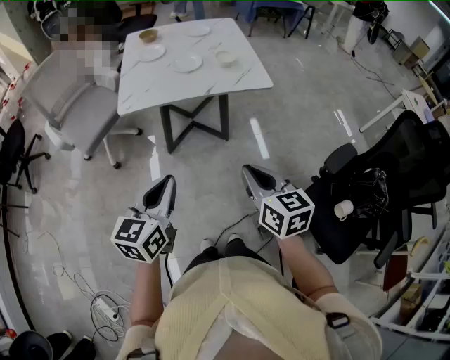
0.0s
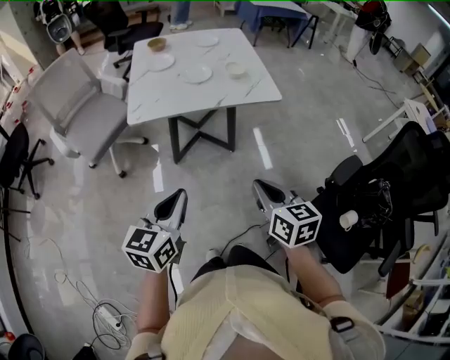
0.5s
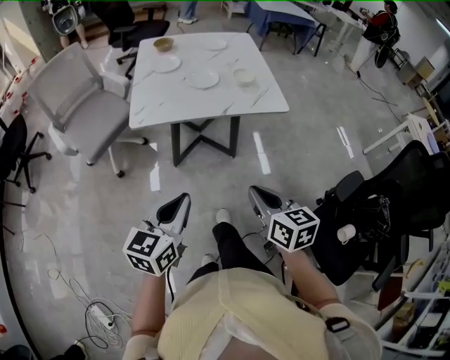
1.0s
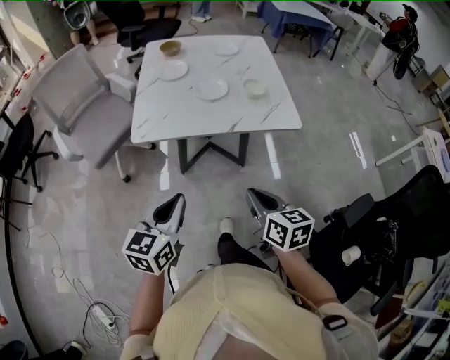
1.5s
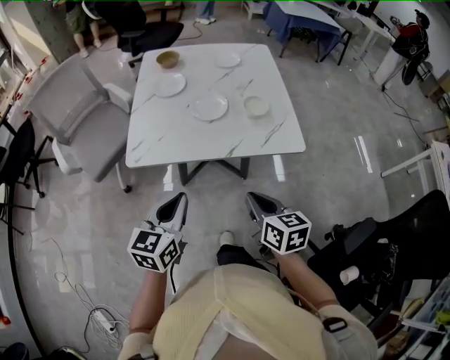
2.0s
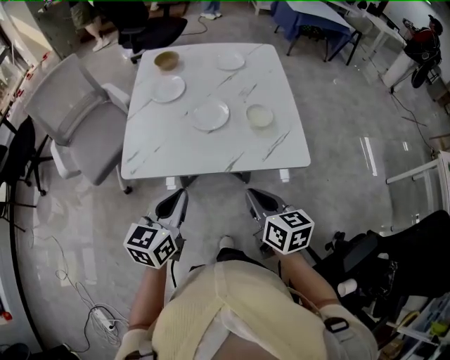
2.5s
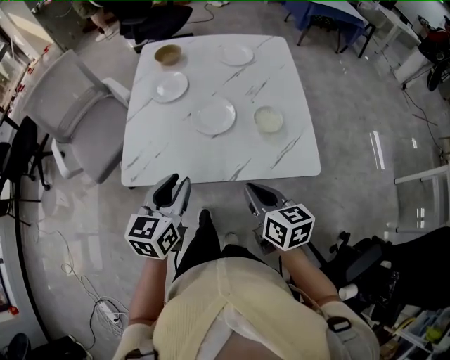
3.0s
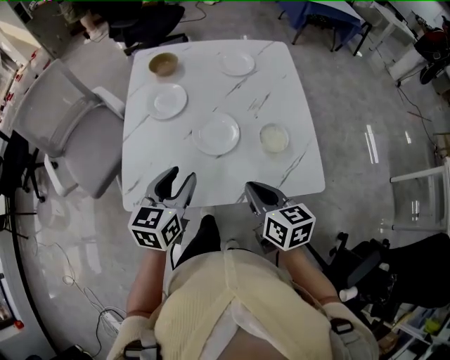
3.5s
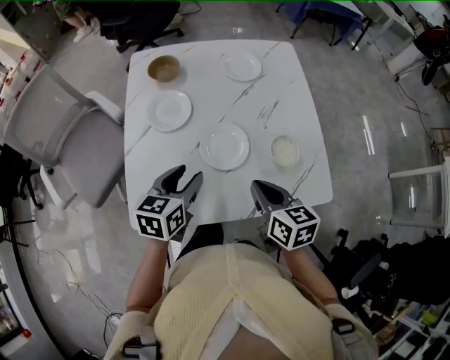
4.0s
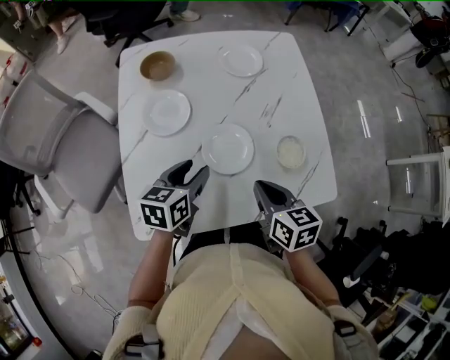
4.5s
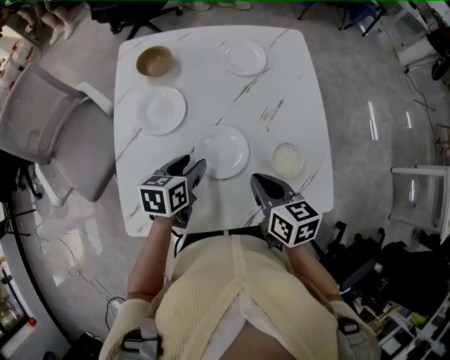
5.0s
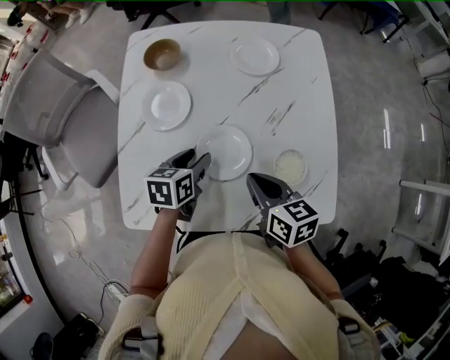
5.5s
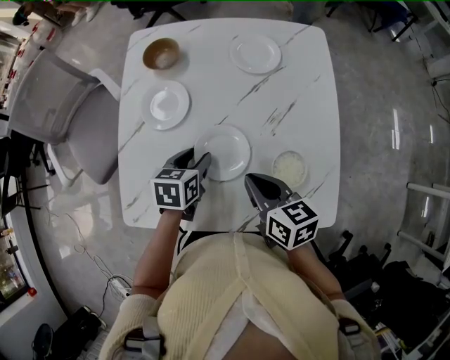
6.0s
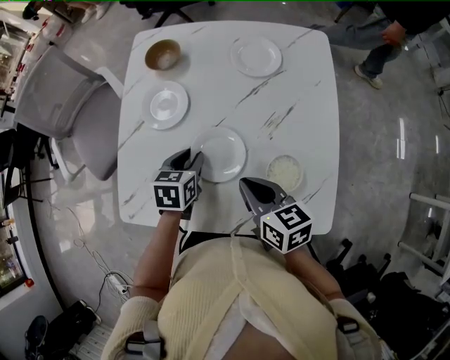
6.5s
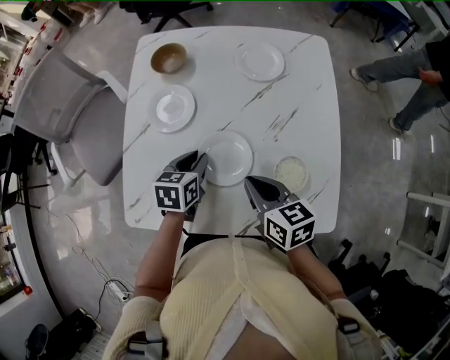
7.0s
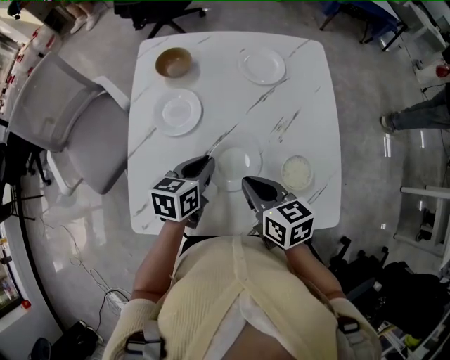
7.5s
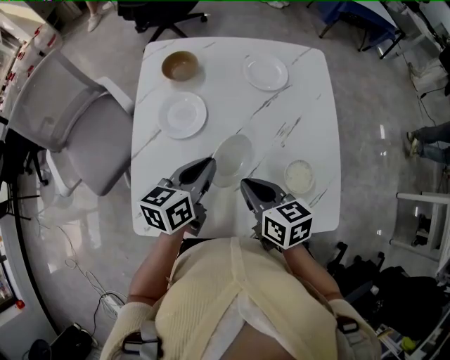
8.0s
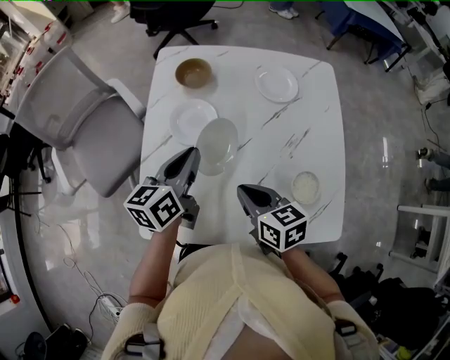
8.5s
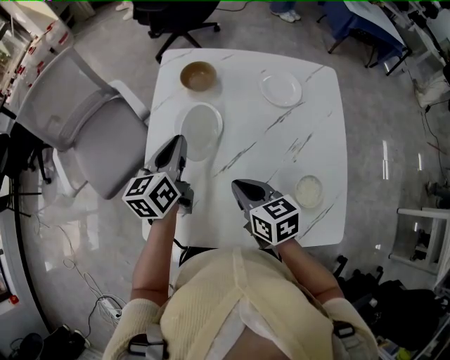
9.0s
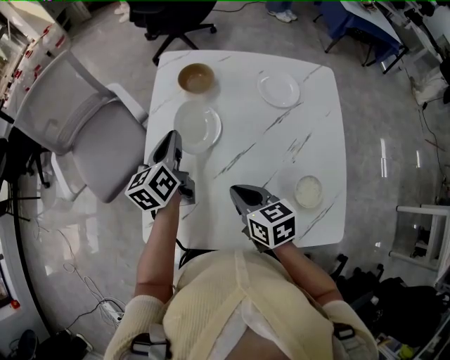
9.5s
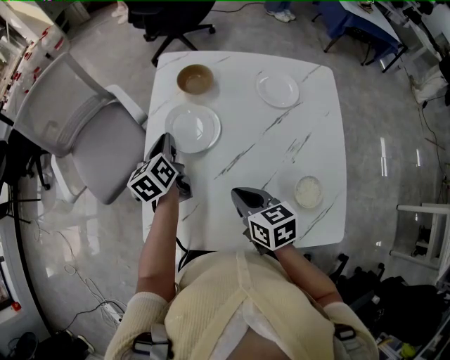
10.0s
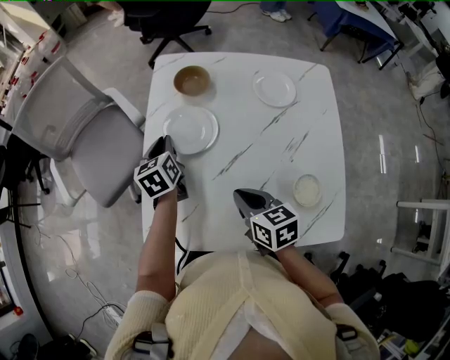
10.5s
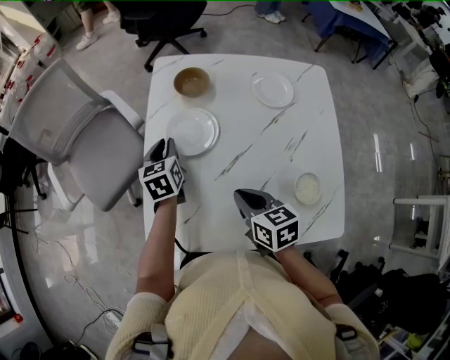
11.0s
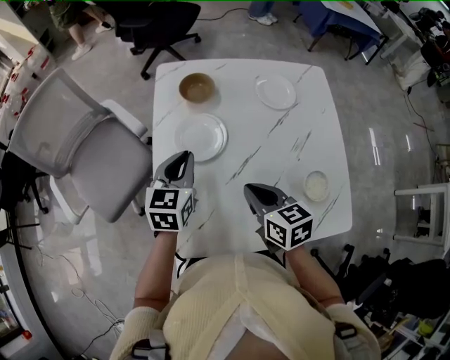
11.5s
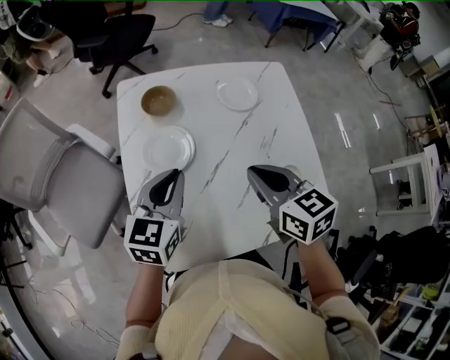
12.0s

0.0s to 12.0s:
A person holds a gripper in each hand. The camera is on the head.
0.0s to 2.0s: Both grippers move forward, some 25 cm.
2.0s to 4.0s: Both grippers travel together forward, roughly 30 cm. The left gripper opens.
4.0s to 6.0s: The right gripper is displaced forward by roughly 5 cm; the left gripper heads downward and forward, covering roughly 10 cm, and swivels roughly 20 degrees.
6.0s to 8.0s: The left gripper heads upward, covering roughly 10 cm, rotates roughly 30 degrees, and closes up. Meanwhile the right gripper shifts approximately 5 cm to the left.
8.0s to 10.0s: The left gripper heads forward and to the left, covering roughly 20 cm, and rotates roughly 40 degrees. Meanwhile the right gripper shifts about 5 cm to the left.
10.0s to 12.0s: The left gripper moves approximately 15 cm, and turns by roughly 50 degrees. Meanwhile the right gripper goes about 15 cm upward, and changes its angle by about 20 degrees.

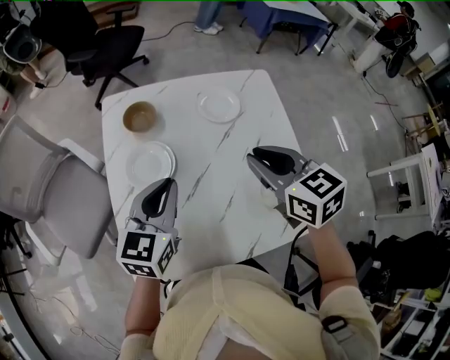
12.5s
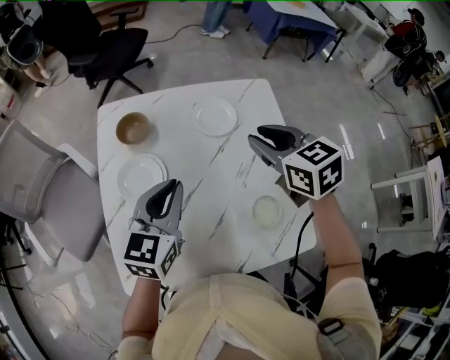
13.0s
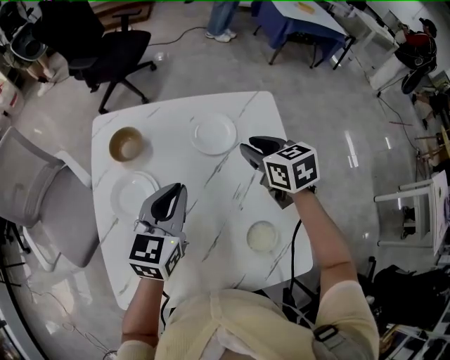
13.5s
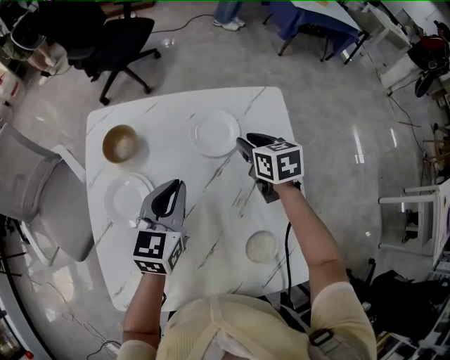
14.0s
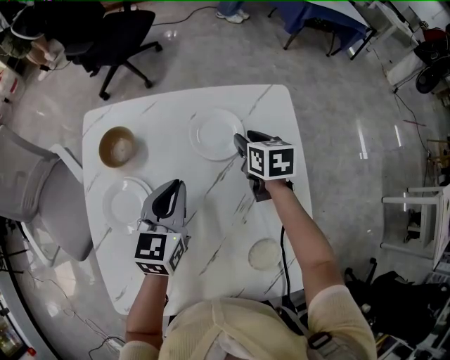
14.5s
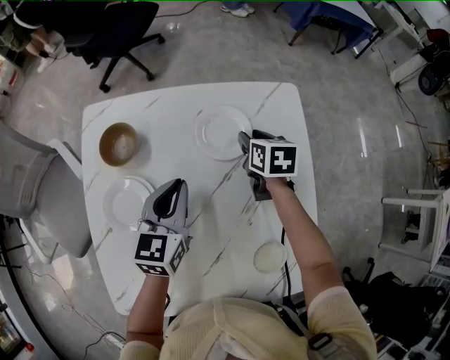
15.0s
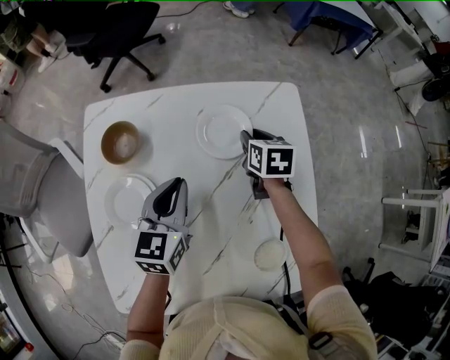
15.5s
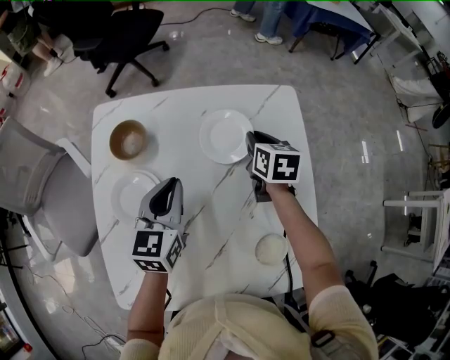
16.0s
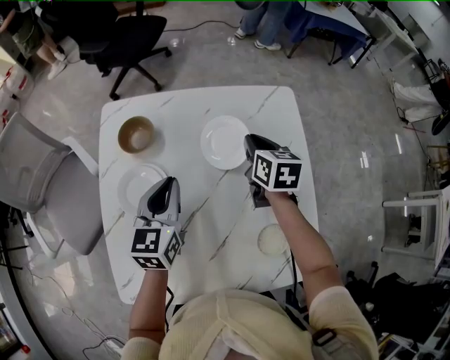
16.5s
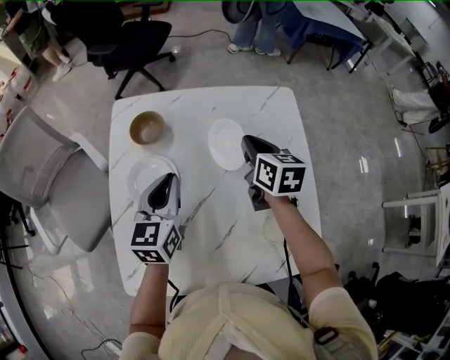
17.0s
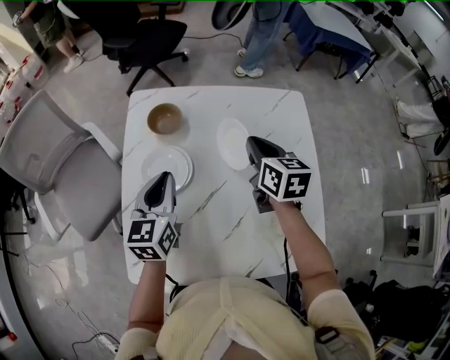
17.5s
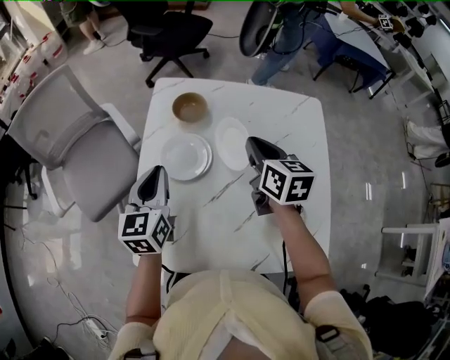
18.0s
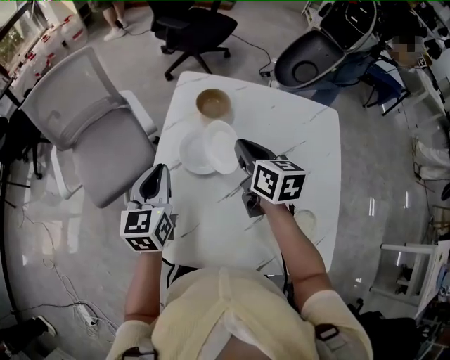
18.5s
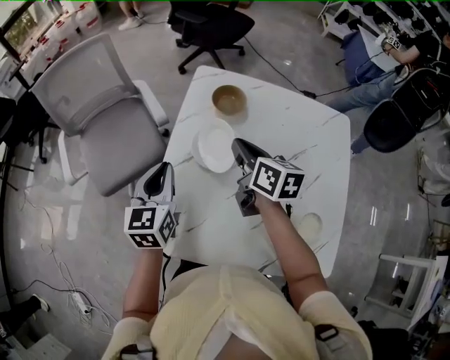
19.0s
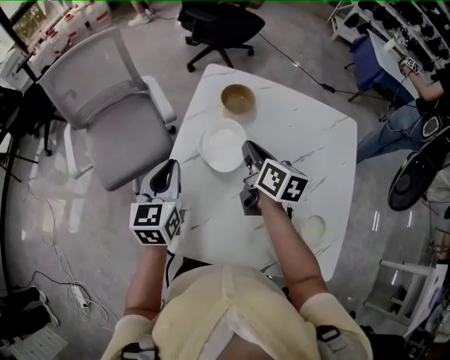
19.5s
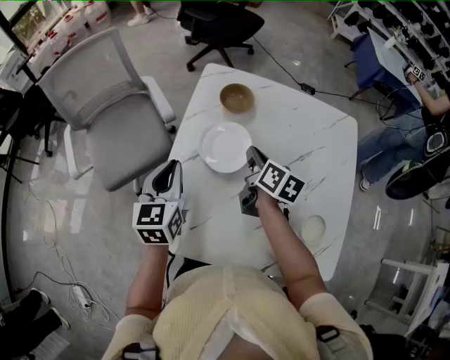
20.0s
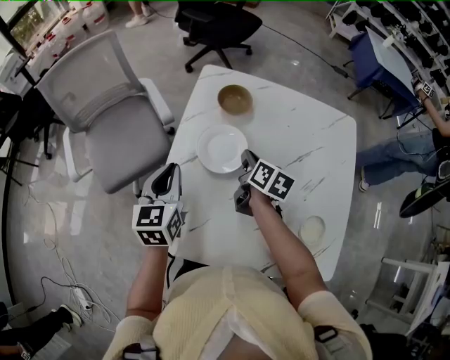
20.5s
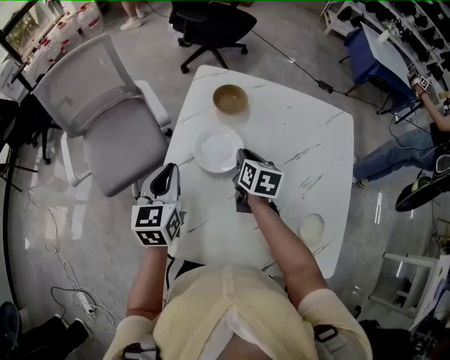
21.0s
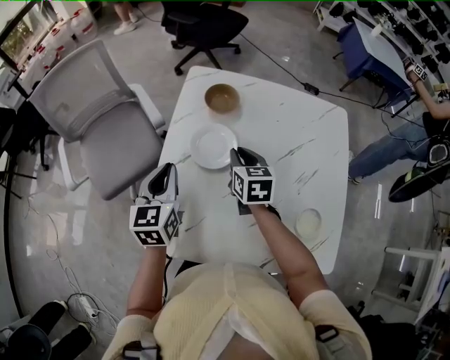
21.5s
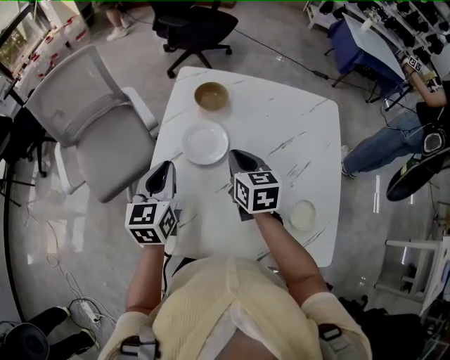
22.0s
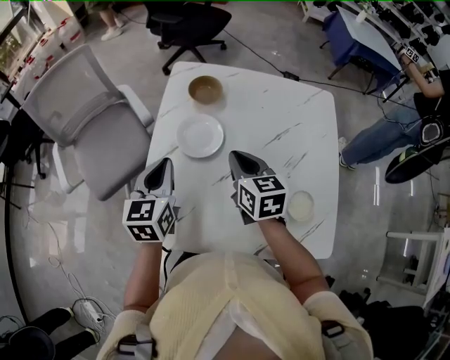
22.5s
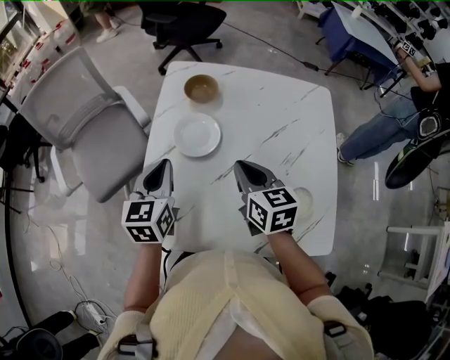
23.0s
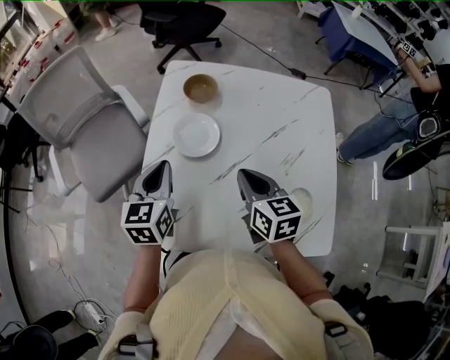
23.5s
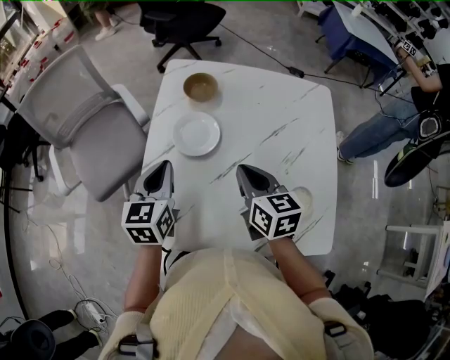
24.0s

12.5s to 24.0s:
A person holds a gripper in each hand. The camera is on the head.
12.5s to 14.5s: The right gripper goes approximately 35 cm forward and downward, and turns by roughly 20 degrees. Meanwhile the left gripper goes approximately 20 cm forward, to the right and downward.
14.5s to 16.5s: The left gripper travels to the left by some 5 cm, while the right gripper moves upward, roughly 5 cm, and closes up.
16.5s to 18.5s: The right gripper is displaced to the left by some 25 cm, and turns by roughly 20 degrees. The left gripper moves to the left and backward, approximately 25 cm, and swivels about 20 degrees.
18.5s to 20.0s: The right gripper is displaced downward by roughly 10 cm, and rotates approximately 20 degrees.
20.0s to 22.0s: The right gripper moves roughly 5 cm, and changes its angle by some 30 degrees.
22.0s to 24.0s: The right gripper is displaced backward by about 10 cm.

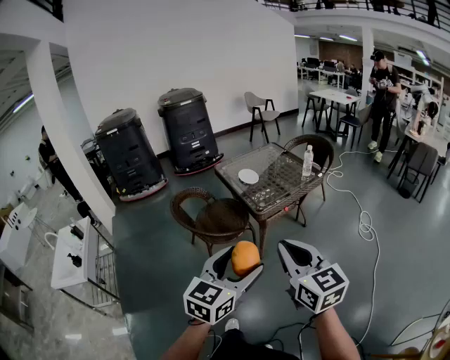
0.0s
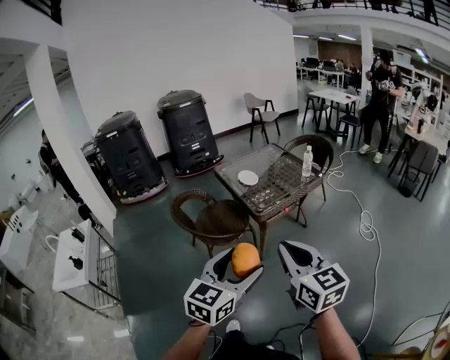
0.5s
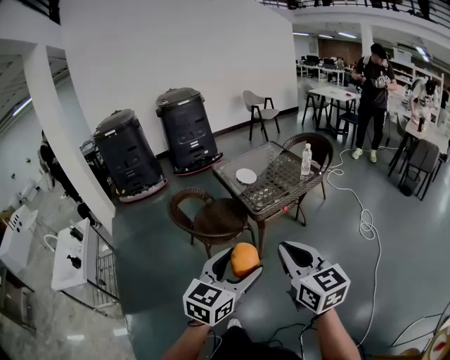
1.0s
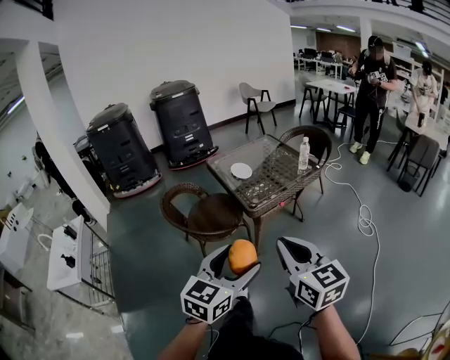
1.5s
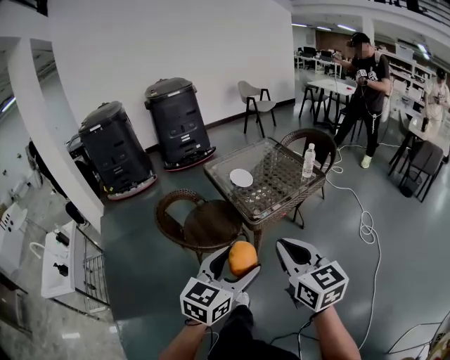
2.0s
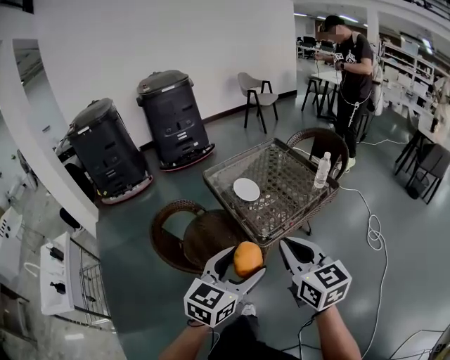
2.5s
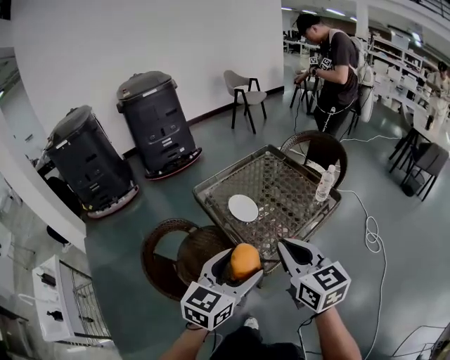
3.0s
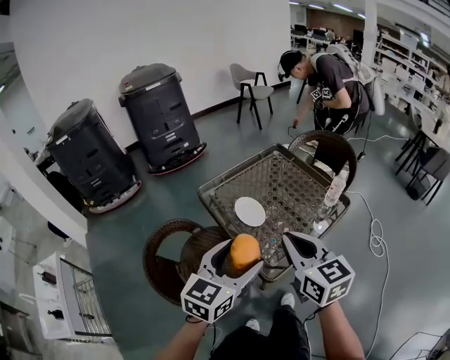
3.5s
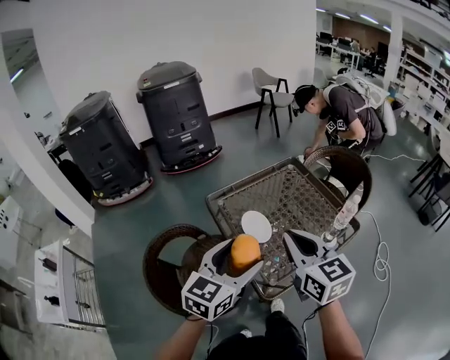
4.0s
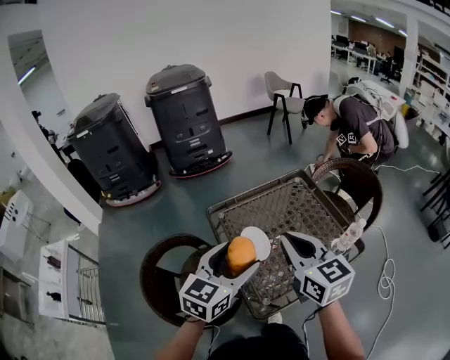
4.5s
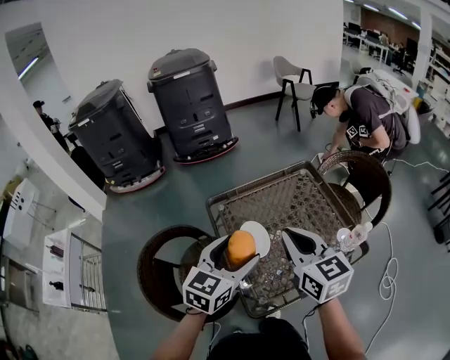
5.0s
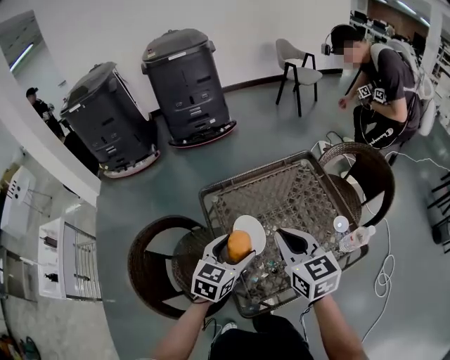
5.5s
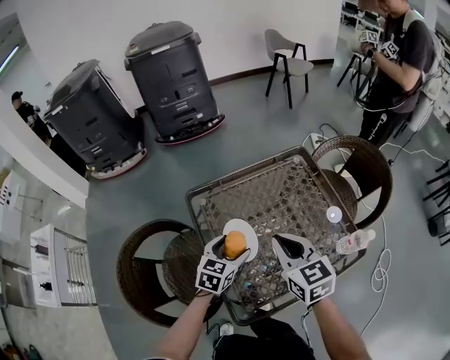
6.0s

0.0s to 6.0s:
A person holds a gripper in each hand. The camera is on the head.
0.0s to 2.0s: The grippers both shift forward by approximately 15 cm.
2.0s to 4.0s: The two grippers travel together, forward, about 40 cm.
4.0s to 6.0s: The left gripper heads downward and forward, covering some 30 cm, and rotates approximately 20 degrees. Meanwhile the right gripper heads forward and downward, covering about 25 cm.
